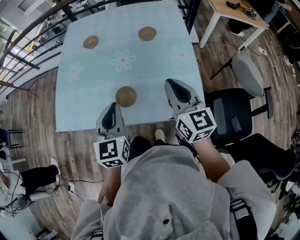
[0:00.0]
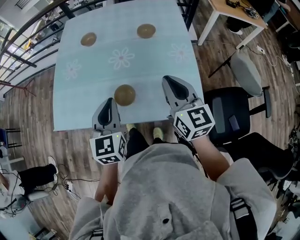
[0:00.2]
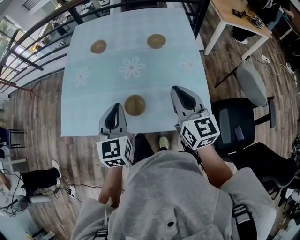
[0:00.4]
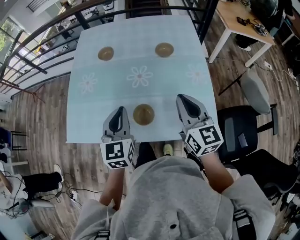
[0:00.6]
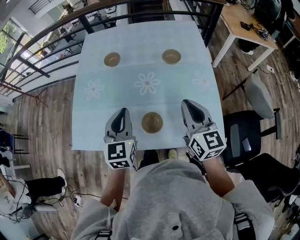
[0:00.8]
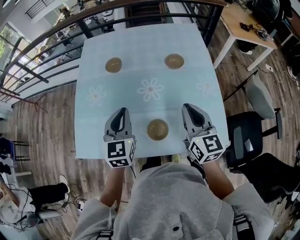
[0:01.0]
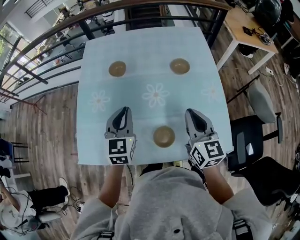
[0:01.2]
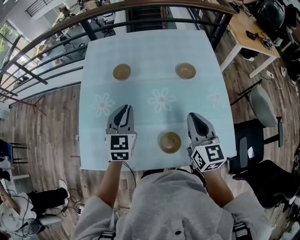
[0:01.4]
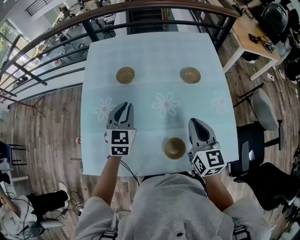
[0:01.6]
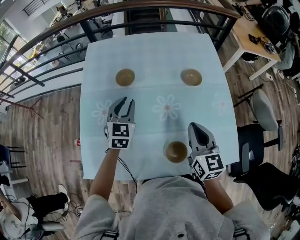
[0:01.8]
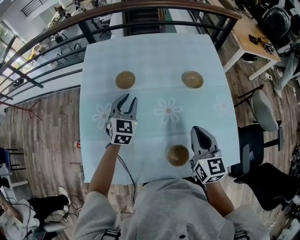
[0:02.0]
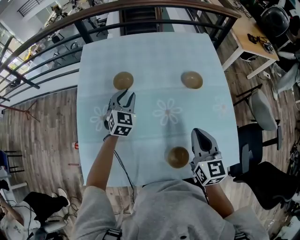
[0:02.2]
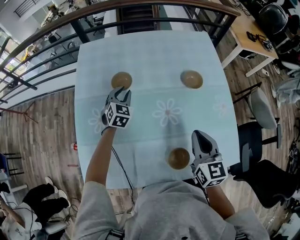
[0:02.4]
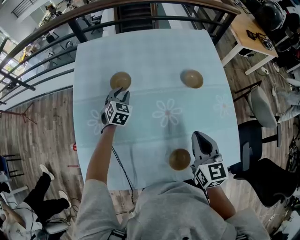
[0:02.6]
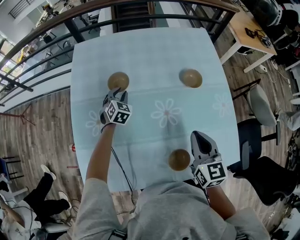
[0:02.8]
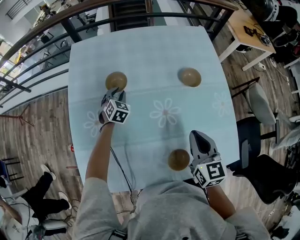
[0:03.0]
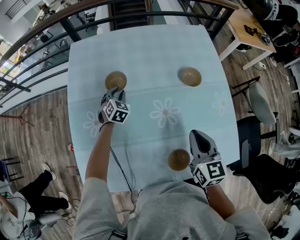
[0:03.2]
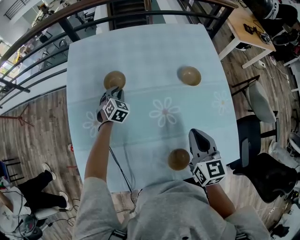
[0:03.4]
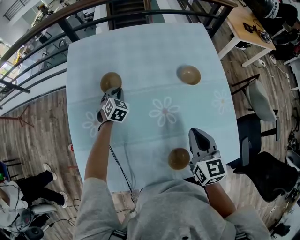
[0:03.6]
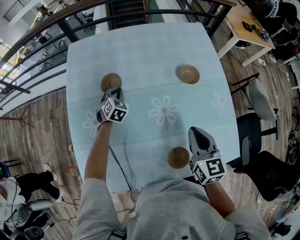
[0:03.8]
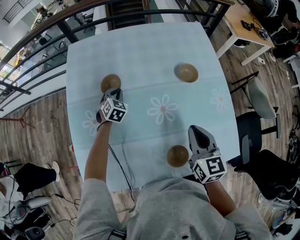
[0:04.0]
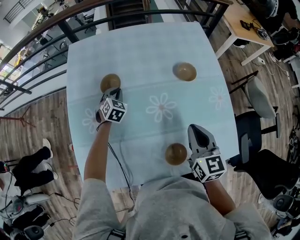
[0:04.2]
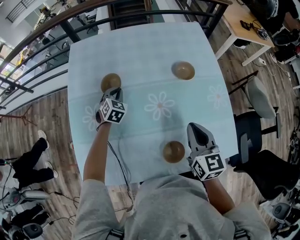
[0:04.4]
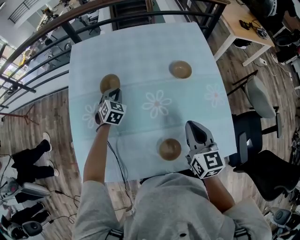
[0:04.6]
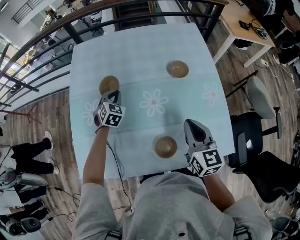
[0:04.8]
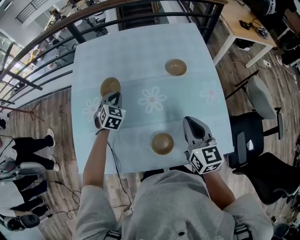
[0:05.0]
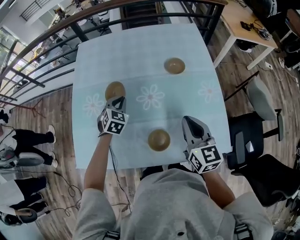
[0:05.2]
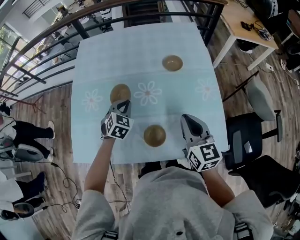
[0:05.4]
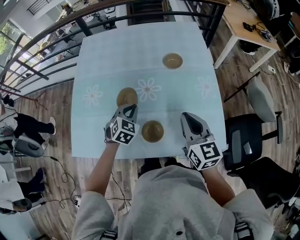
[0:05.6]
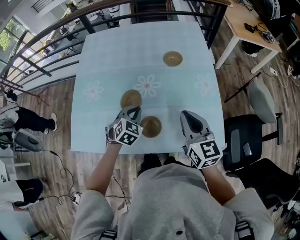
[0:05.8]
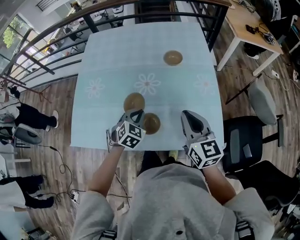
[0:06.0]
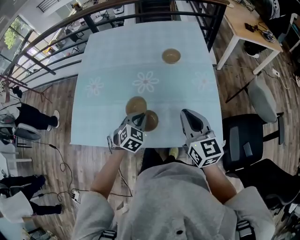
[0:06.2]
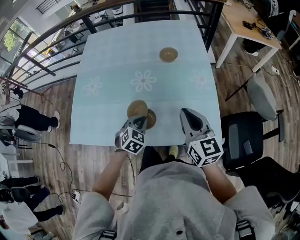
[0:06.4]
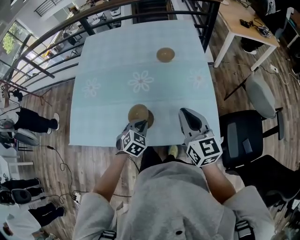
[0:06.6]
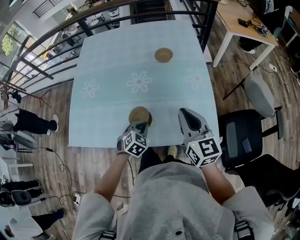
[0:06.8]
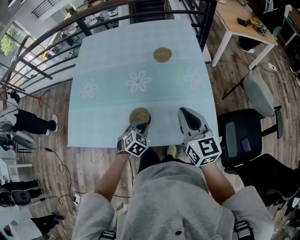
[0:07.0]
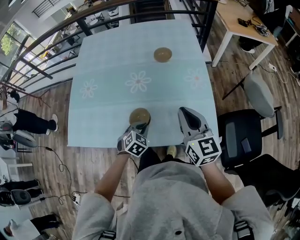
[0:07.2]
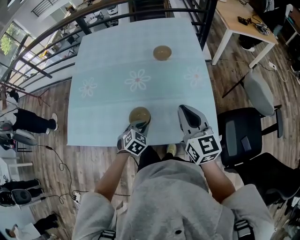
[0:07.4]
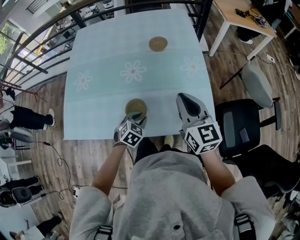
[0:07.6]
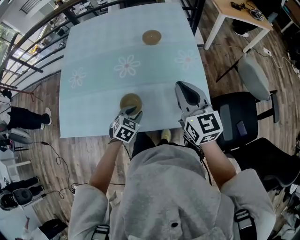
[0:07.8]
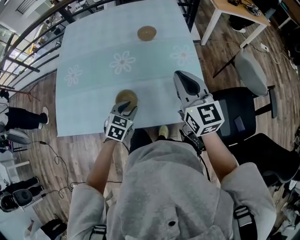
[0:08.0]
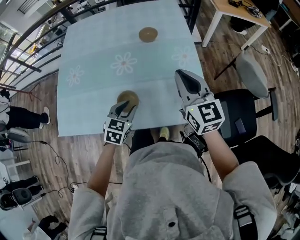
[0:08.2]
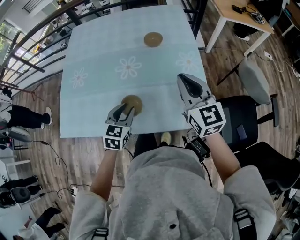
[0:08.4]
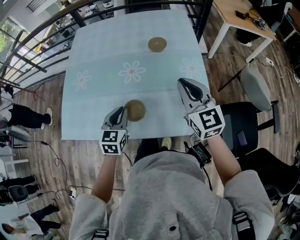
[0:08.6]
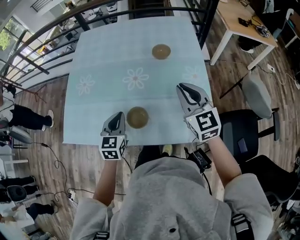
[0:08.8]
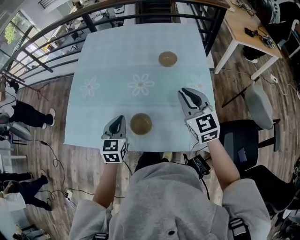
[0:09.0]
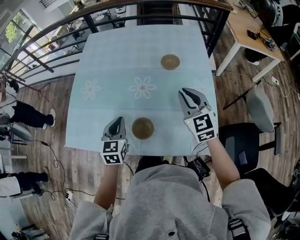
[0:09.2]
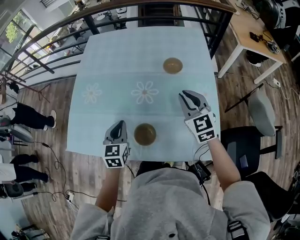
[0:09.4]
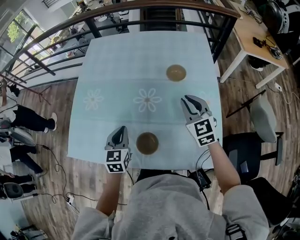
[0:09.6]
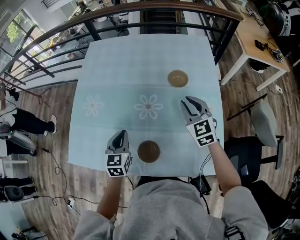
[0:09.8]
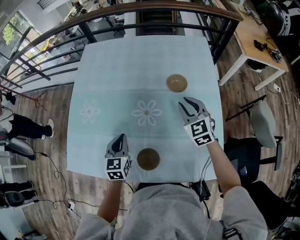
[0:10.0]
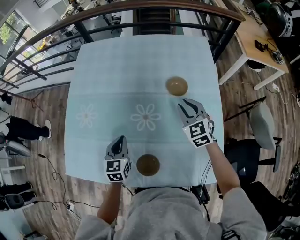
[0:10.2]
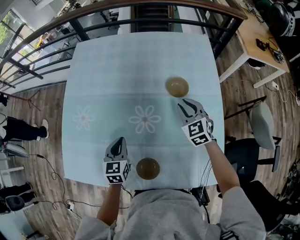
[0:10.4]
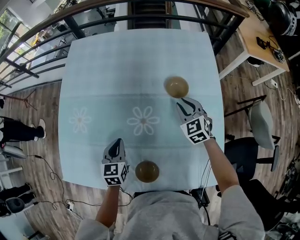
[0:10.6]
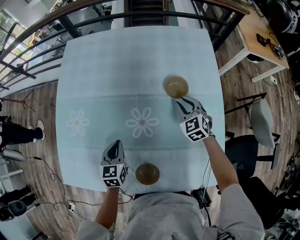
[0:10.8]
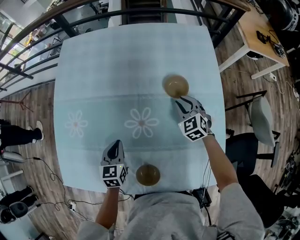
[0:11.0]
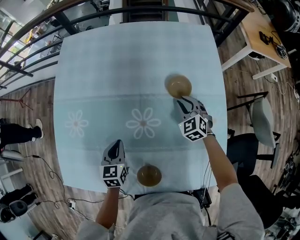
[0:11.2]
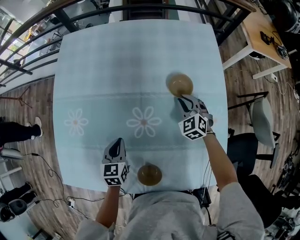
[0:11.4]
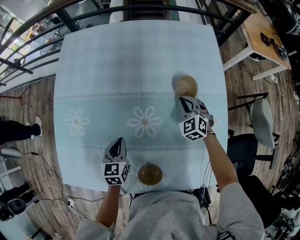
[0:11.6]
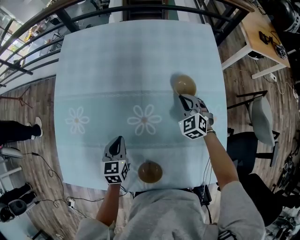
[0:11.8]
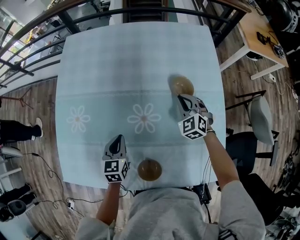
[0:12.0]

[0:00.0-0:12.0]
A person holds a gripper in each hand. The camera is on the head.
0:00.0 to 0:01.6: The left gripper moves forward and to the left, roughly 35 cm, while the right gripper shifts roughly 20 cm forward and to the left.
0:01.6 to 0:03.0: The right gripper moves some 5 cm. Meanwhile the left gripper moves downward and forward, approximately 25 cm, turns by approximately 30 degrees, and opens up.
0:03.0 to 0:04.4: The left gripper shifts by roughly 5 cm.
0:04.4 to 0:06.0: The right gripper travels backward and to the right by roughly 15 cm. Meanwhile the left gripper goes roughly 35 cm backward and to the right.
0:06.0 to 0:07.6: The left gripper is displaced backward, downward and to the right by some 15 cm.
0:07.6 to 0:09.0: The right gripper travels forward by some 10 cm, and swivels about 20 degrees. Meanwhile the left gripper travels upward, to the left and forward by roughly 20 cm, and swivels about 40 degrees.
0:09.0 to 0:10.4: The grippers both shift forward and downward by about 20 cm. The right gripper rotates approximately 20 degrees.
0:10.4 to 0:12.0: The right gripper travels downward by roughly 5 cm.

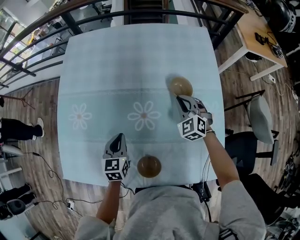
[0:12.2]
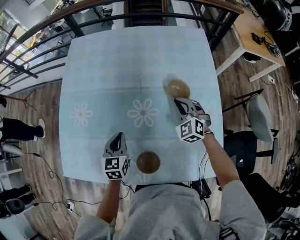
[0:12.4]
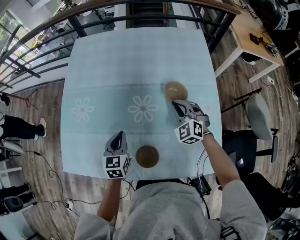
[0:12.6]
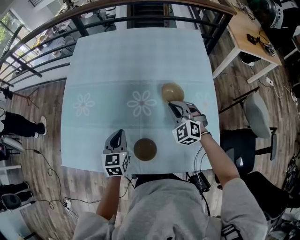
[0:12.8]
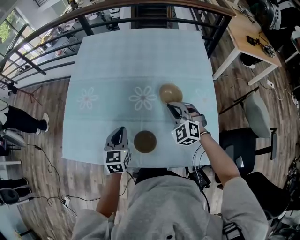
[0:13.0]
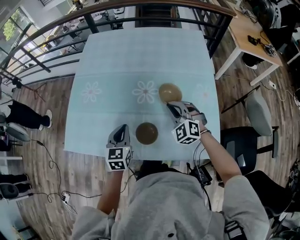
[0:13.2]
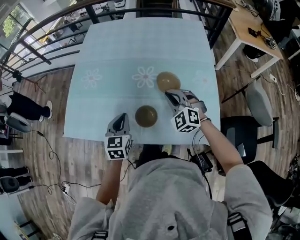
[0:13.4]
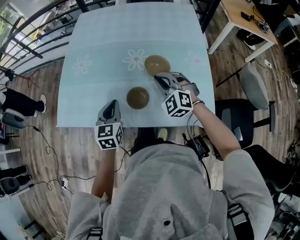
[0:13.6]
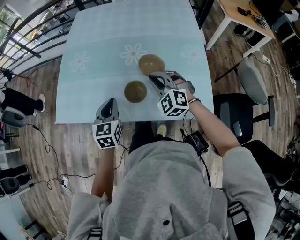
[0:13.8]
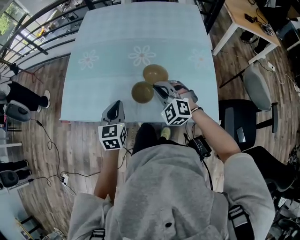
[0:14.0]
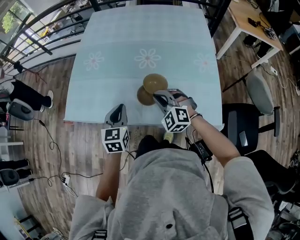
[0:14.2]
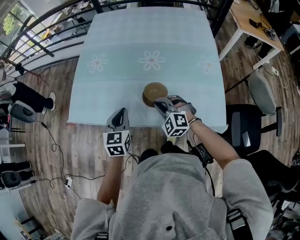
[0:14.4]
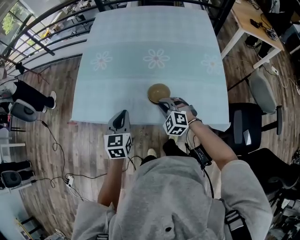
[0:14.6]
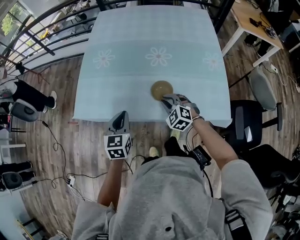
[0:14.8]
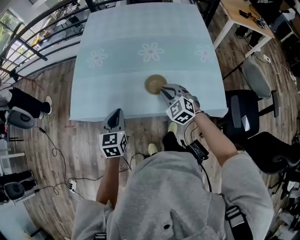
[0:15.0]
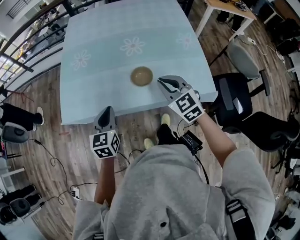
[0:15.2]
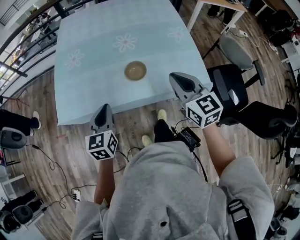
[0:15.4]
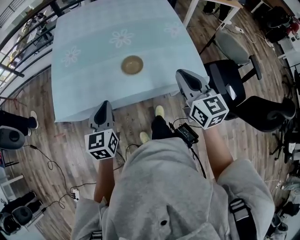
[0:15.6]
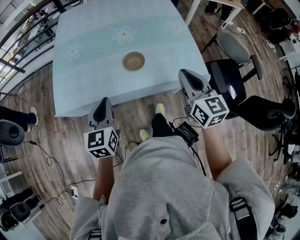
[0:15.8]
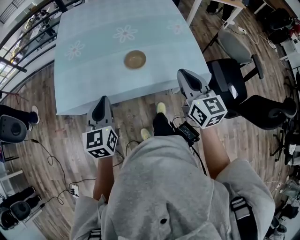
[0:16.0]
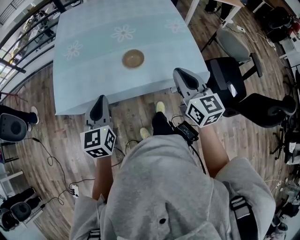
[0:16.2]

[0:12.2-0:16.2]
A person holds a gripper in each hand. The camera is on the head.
0:12.2 to 0:13.6: Both grippers move backward, roughly 25 cm. The right gripper turns by roughly 20 degrees.
0:13.6 to 0:14.8: The right gripper is displaced to the left, downward and backward by approximately 15 cm; the left gripper travels to the left and backward by roughly 15 cm.
0:14.8 to 0:16.2: The left gripper shifts approximately 15 cm backward and upward. The right gripper is displaced upward, backward and to the right by roughly 30 cm, and tips its fingers upward by about 30 degrees.

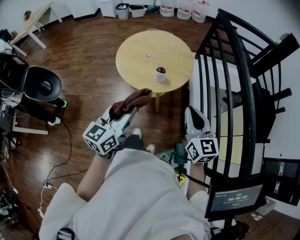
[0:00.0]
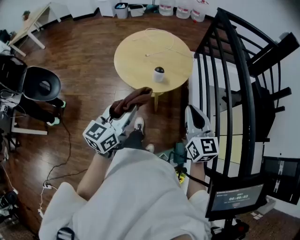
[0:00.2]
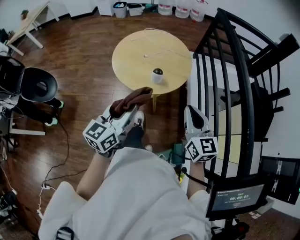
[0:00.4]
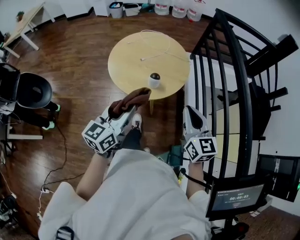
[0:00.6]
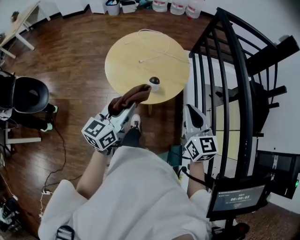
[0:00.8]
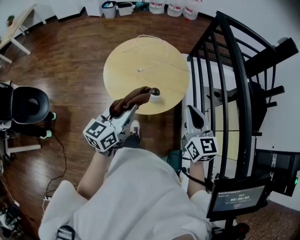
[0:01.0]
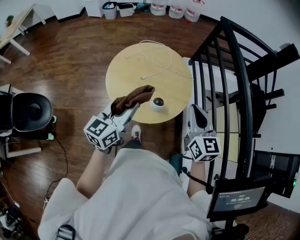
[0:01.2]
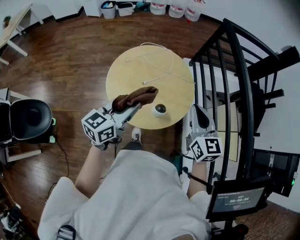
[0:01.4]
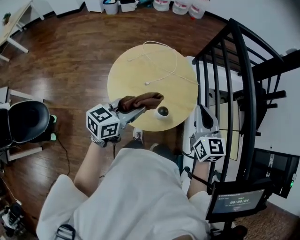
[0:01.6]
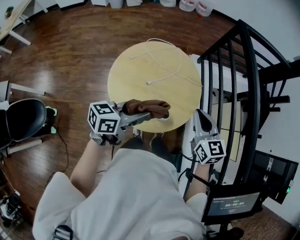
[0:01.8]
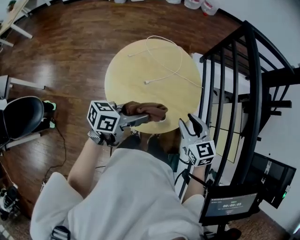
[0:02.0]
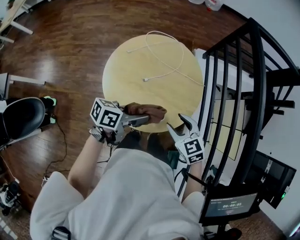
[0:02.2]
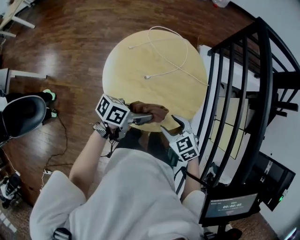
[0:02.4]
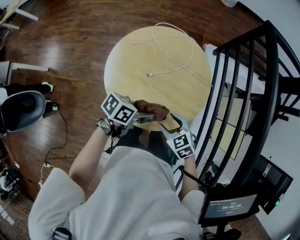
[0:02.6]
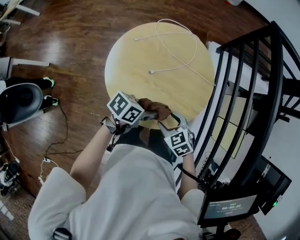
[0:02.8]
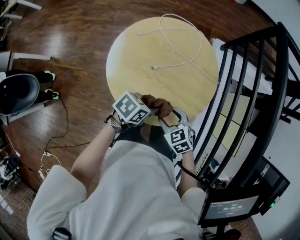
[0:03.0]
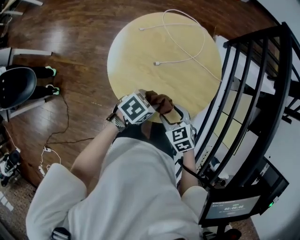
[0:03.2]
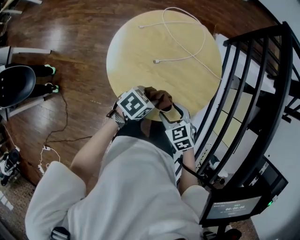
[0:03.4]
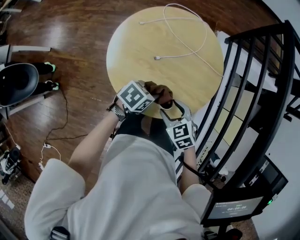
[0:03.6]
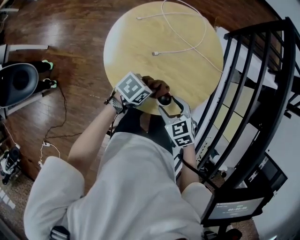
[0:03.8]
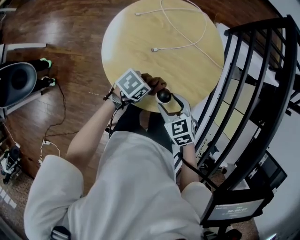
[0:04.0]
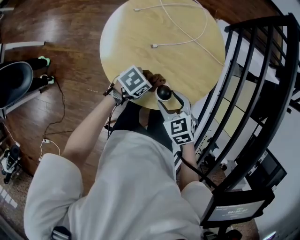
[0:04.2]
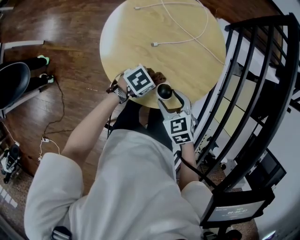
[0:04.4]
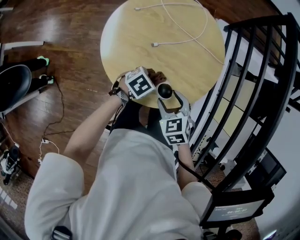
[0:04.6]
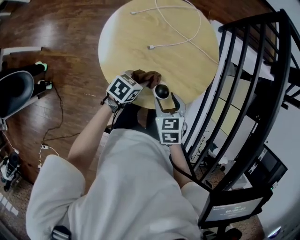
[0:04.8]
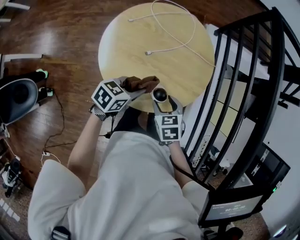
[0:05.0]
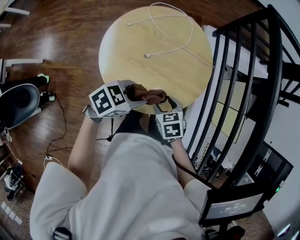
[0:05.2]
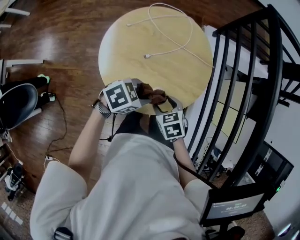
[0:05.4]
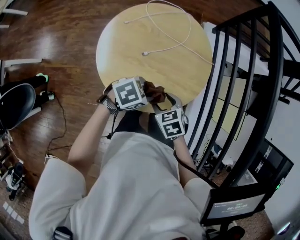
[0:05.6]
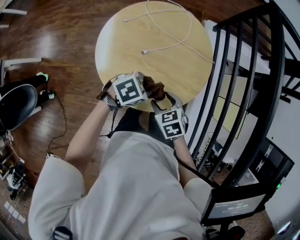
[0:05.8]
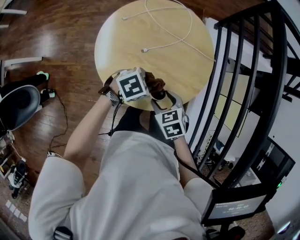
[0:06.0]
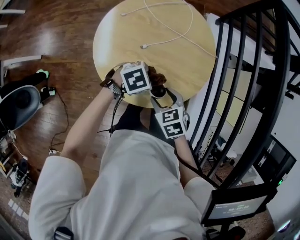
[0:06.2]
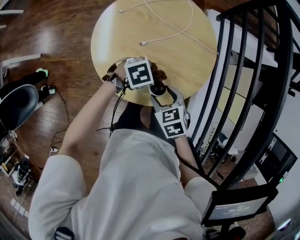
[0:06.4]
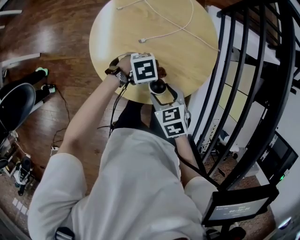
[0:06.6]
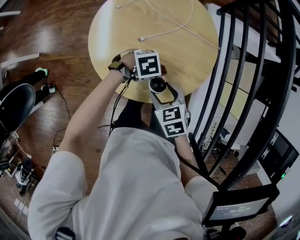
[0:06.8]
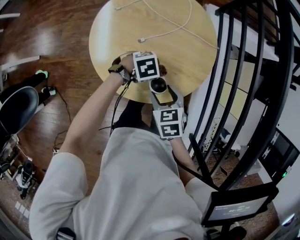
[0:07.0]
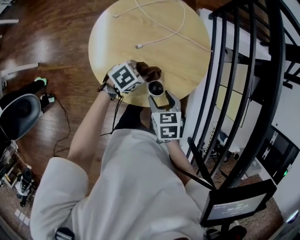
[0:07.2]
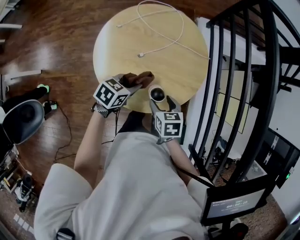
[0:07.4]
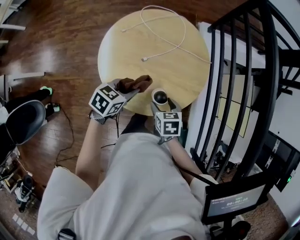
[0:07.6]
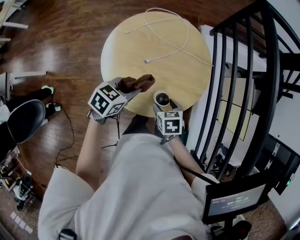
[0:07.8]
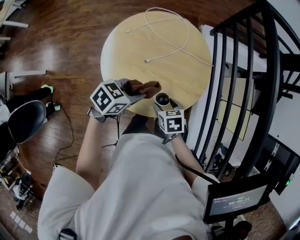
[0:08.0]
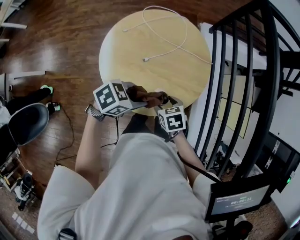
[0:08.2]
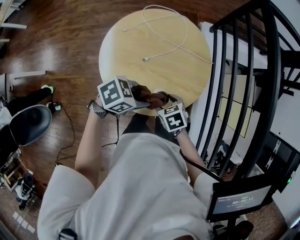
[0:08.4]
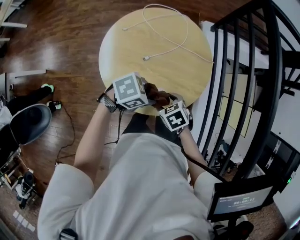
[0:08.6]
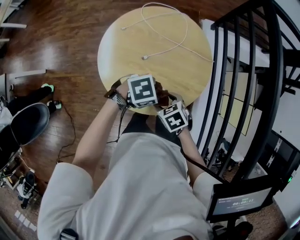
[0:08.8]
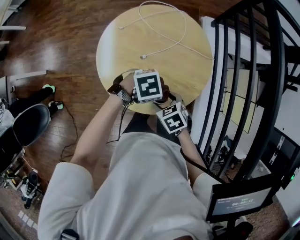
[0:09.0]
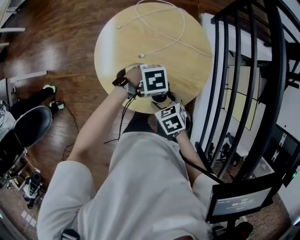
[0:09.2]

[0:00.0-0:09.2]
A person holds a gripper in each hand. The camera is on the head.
0:00.0 to 0:01.6: Both grippers move forward, roughly 20 cm. The left gripper swivels some 30 degrees.
0:01.6 to 0:03.0: The grippers both shift downward by some 20 cm. The left gripper swivels some 40 degrees; the right gripper points its fingers about 40 degrees further downward, and opens its fingers.
0:03.0 to 0:04.6: The left gripper moves downward, about 10 cm, and swivels some 20 degrees.
0:04.6 to 0:06.2: The left gripper is displaced upward by some 5 cm, and changes its angle by some 20 degrees.
0:06.2 to 0:07.6: The right gripper changes its angle by some 30 degrees. Meanwhile the left gripper shifts by some 5 cm, and rotates roughly 30 degrees.
0:07.6 to 0:09.2: The right gripper turns by about 20 degrees; the left gripper changes place by roughly 10 cm, and turns by approximately 50 degrees.
